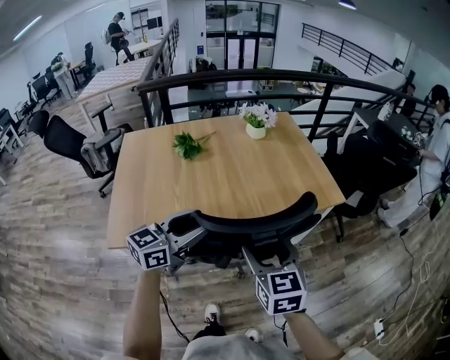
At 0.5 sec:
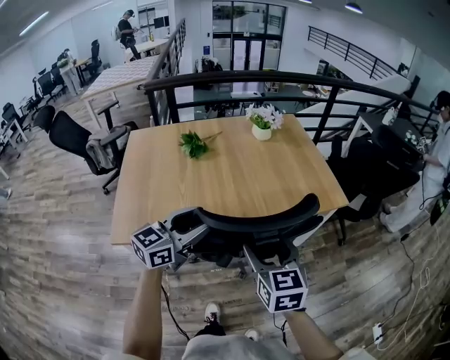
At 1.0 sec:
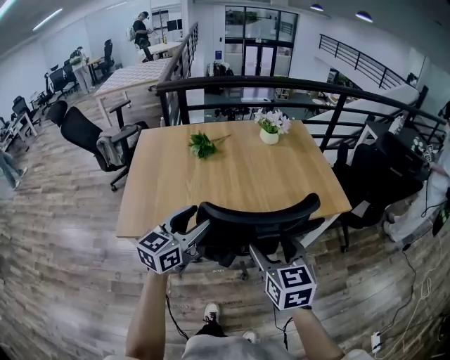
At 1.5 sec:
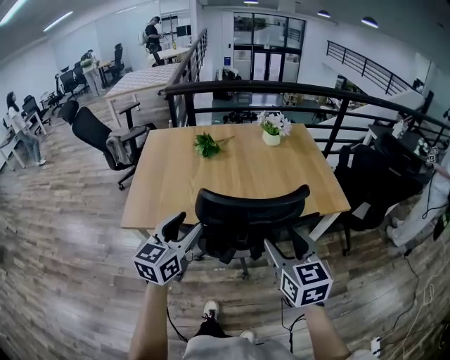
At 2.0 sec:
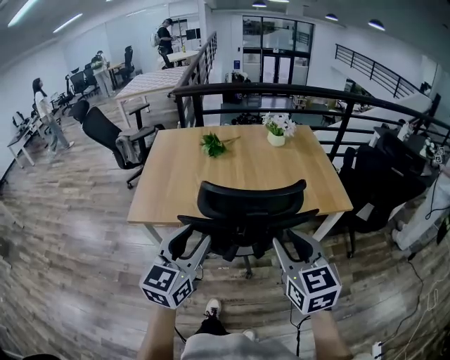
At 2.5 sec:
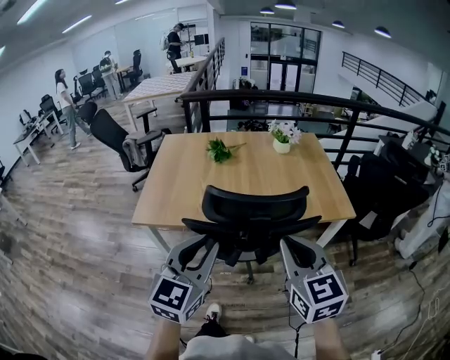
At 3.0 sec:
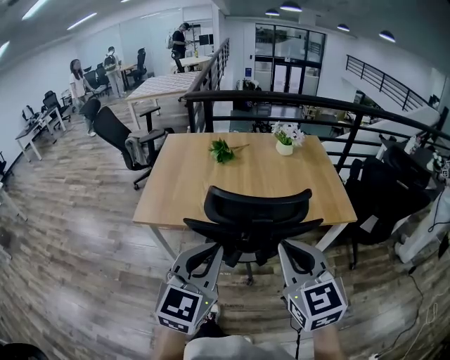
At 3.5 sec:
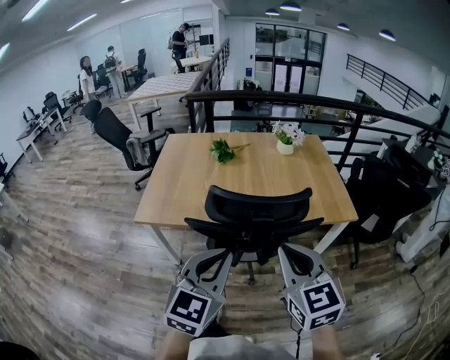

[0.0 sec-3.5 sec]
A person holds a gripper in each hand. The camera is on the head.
0.0 sec to 2.0 sec: The right gripper shifts approximately 15 cm backward, to the right and upward, and closes. Meanwhile the left gripper travels backward by about 15 cm, and turns by approximately 40 degrees.
2.0 sec to 3.5 sec: The right gripper closes its fingers; the left gripper is displaced to the right and backward by approximately 10 cm, and closes.

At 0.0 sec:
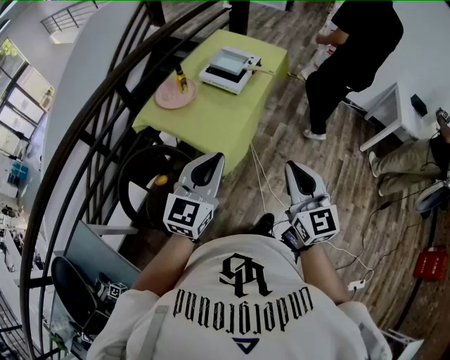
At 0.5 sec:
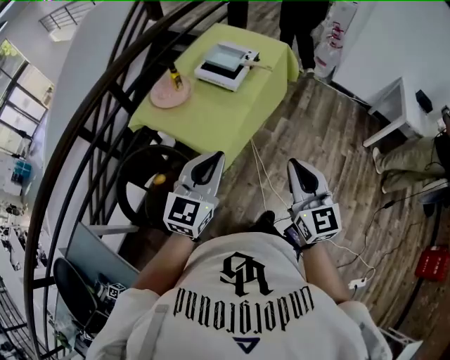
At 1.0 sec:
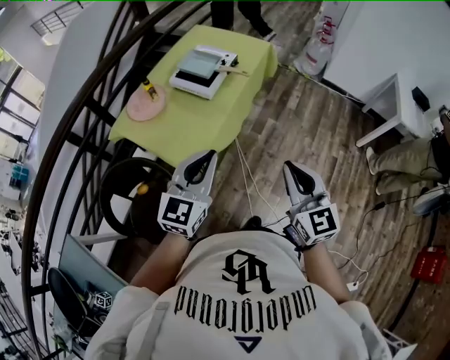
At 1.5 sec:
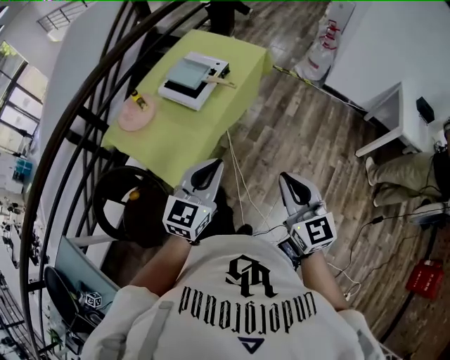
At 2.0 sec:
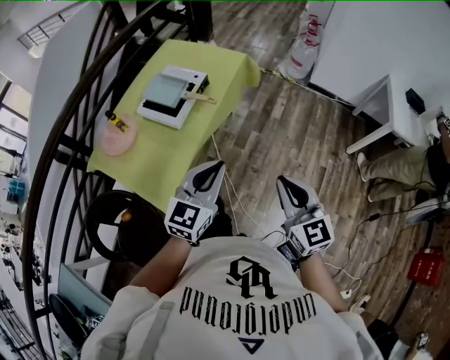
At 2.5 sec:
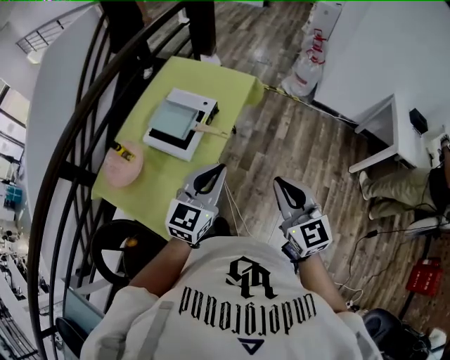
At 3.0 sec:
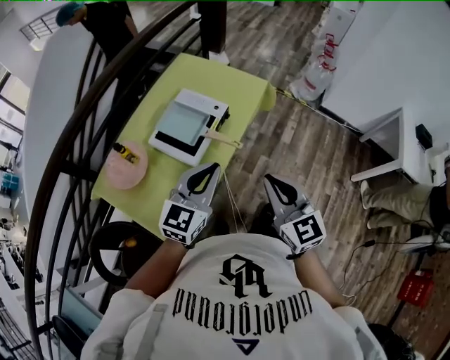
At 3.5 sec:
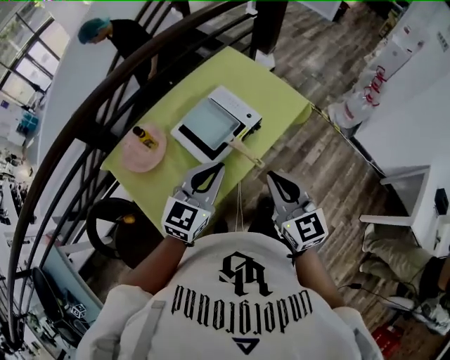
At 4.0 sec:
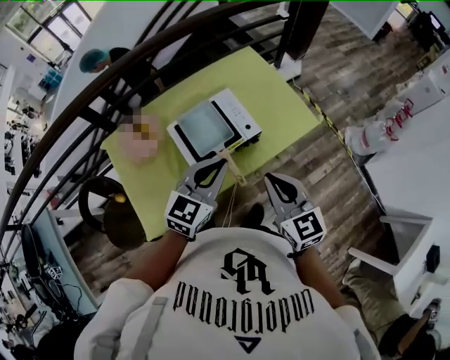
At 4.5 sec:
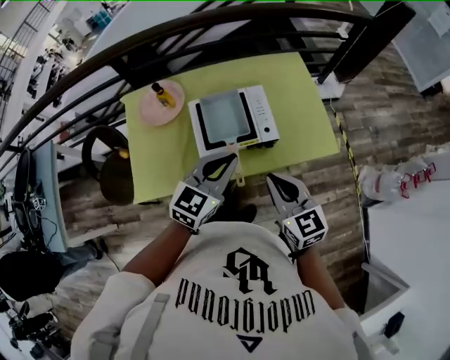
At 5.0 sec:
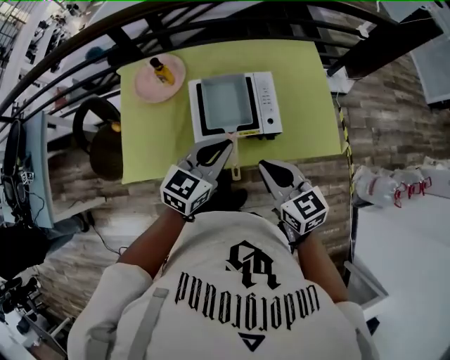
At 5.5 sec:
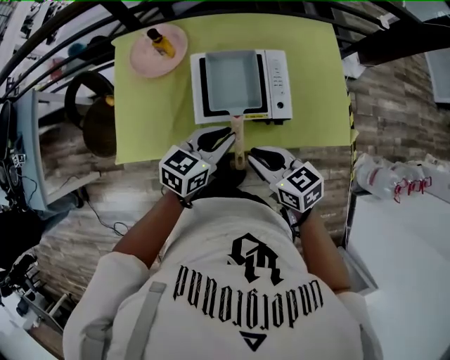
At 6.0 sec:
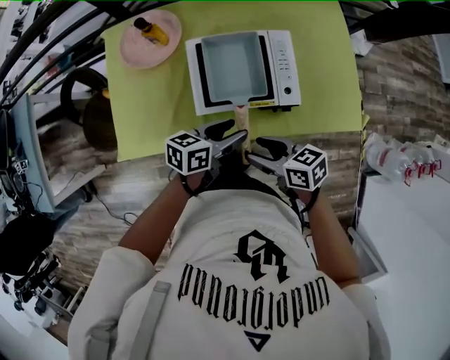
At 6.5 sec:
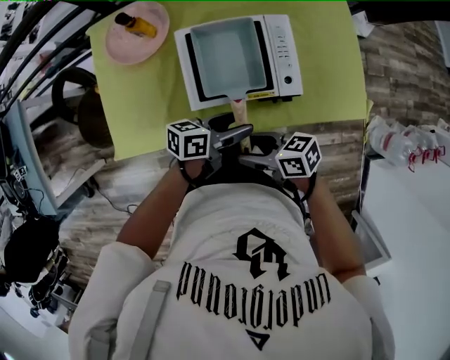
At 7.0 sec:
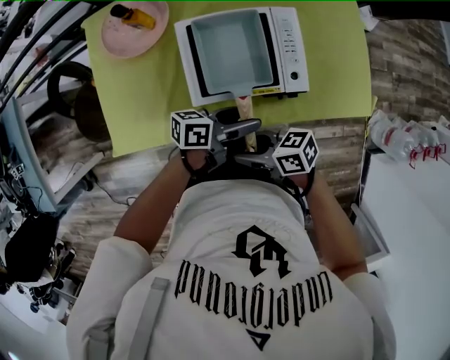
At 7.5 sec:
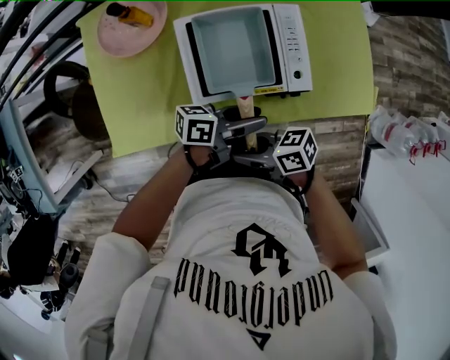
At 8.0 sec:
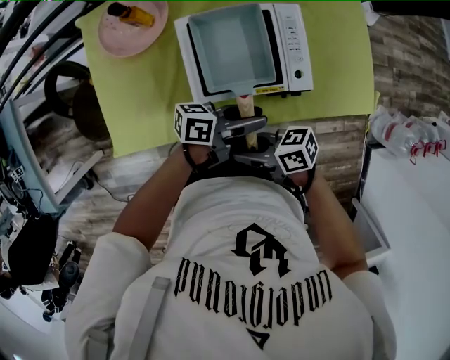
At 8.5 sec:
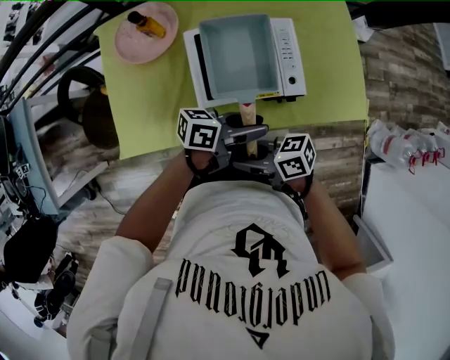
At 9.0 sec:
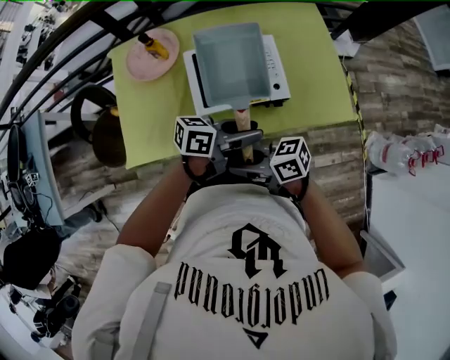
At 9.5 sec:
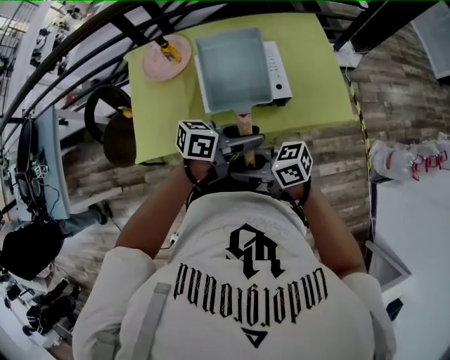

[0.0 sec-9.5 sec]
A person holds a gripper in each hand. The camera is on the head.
0.0 sec to 2.0 sec: The left gripper is displaced forward and to the right by some 40 cm. Meanwhile the right gripper shifts roughly 35 cm to the right and forward.
2.0 sec to 4.0 sec: The right gripper shifts by some 40 cm, and turns by some 40 degrees; the left gripper shifts by roughly 35 cm, and rotates about 30 degrees.
4.0 sec to 5.5 sec: Both grippers move downward, about 15 cm. The right gripper swivels about 50 degrees, while the left gripper rotates roughly 30 degrees.
5.5 sec to 7.5 sec: The grippers both shift downward by some 10 cm. The left gripper turns by about 50 degrees, and opens. The right gripper rotates roughly 40 degrees, and opens and closes again.
7.5 sec to 9.5 sec: Both grippers travel together upward, roughly 15 cm. The right gripper changes its angle by some 20 degrees; the left gripper turns by approximately 20 degrees.

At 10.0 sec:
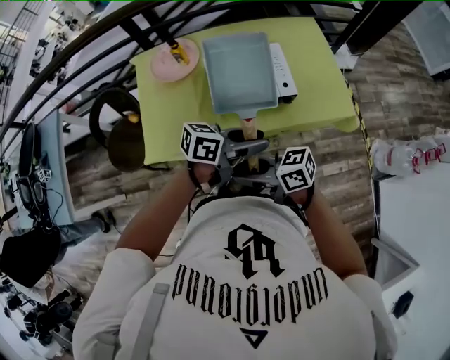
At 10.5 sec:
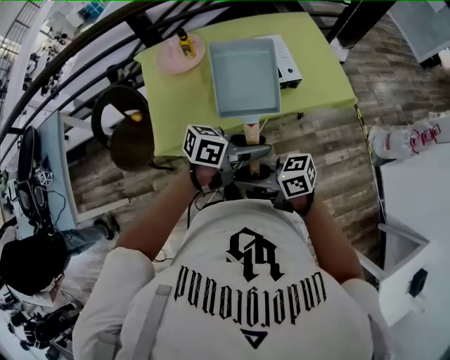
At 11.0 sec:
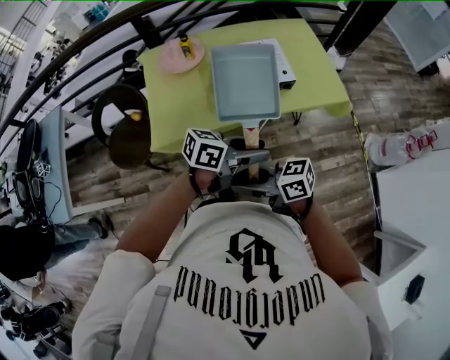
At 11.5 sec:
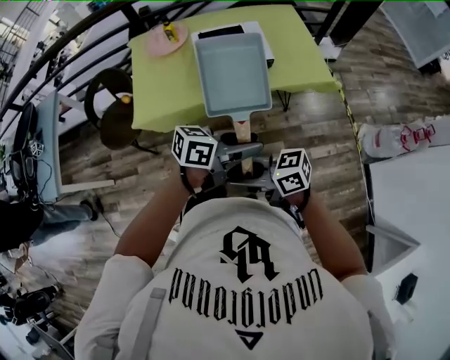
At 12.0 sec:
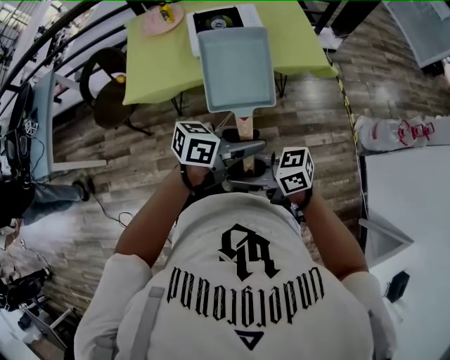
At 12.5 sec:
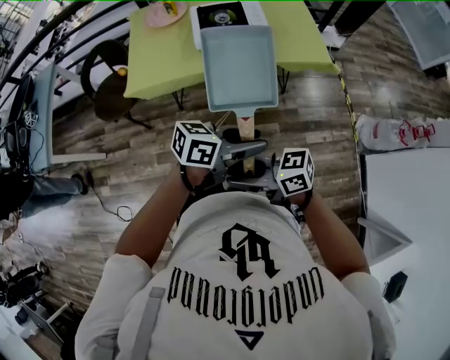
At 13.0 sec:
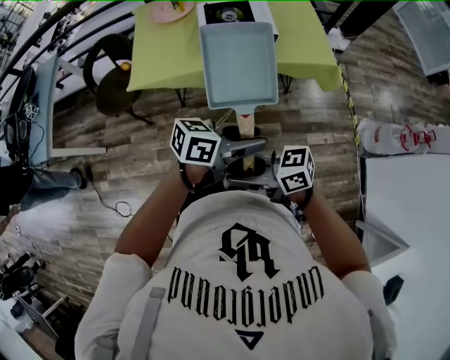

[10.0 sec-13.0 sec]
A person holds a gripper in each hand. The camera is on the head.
10.0 sec to 11.5 sec: The right gripper moves some 25 cm. The left gripper changes place by roughly 20 cm.
11.5 sec to 13.0 sec: The right gripper moves about 10 cm. The left gripper ends up about 10 cm from where it was.

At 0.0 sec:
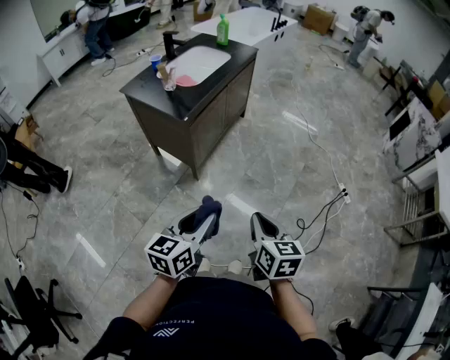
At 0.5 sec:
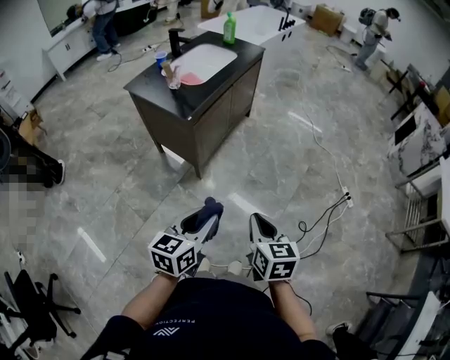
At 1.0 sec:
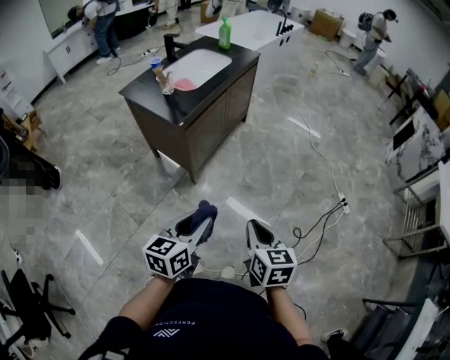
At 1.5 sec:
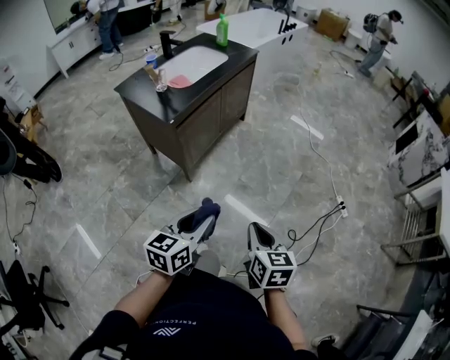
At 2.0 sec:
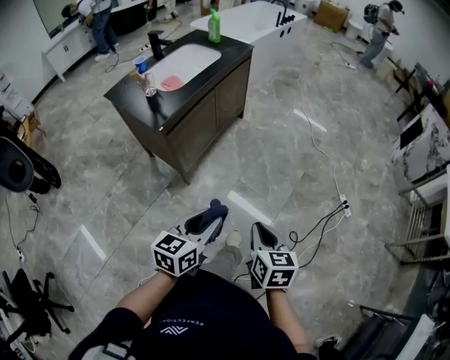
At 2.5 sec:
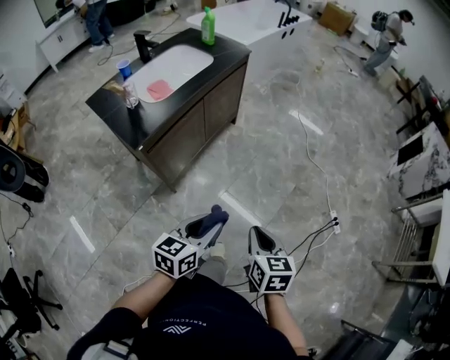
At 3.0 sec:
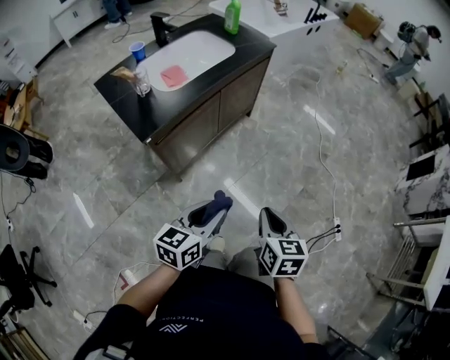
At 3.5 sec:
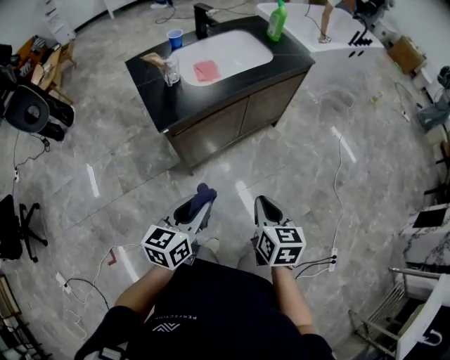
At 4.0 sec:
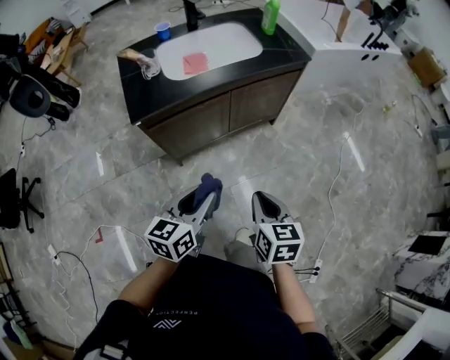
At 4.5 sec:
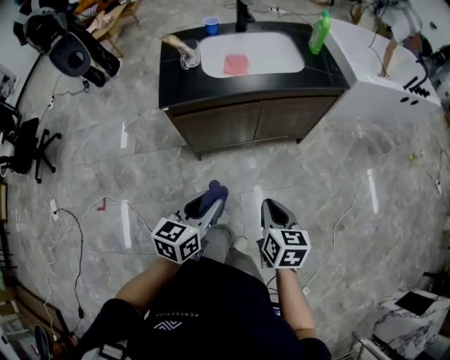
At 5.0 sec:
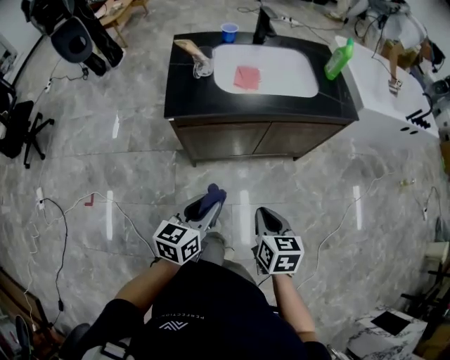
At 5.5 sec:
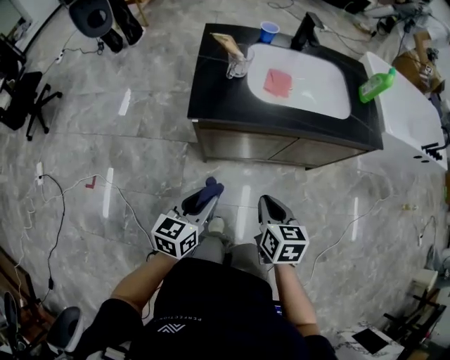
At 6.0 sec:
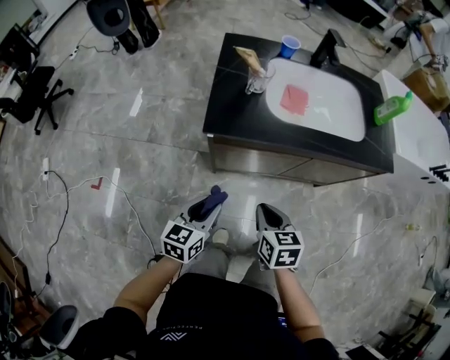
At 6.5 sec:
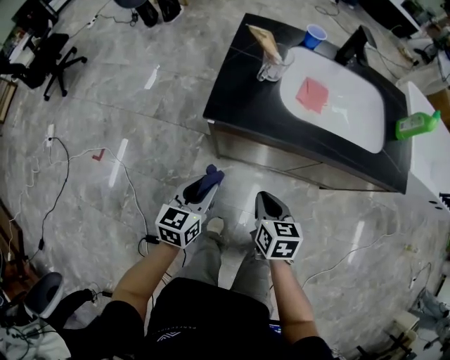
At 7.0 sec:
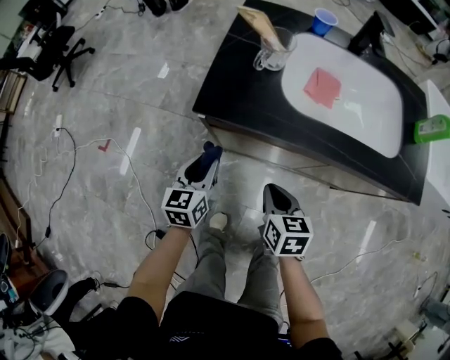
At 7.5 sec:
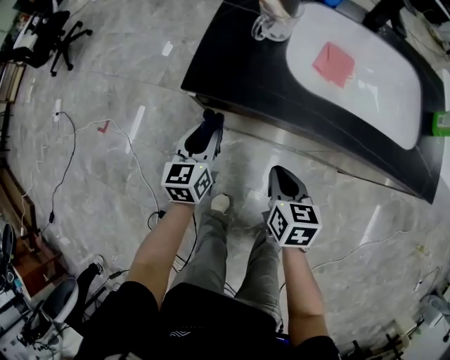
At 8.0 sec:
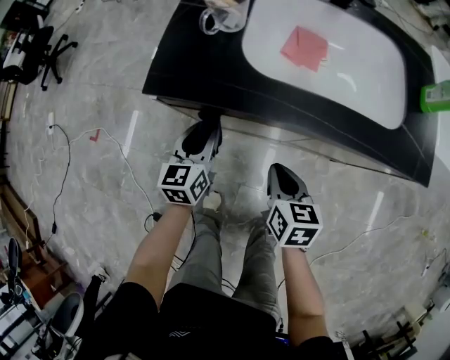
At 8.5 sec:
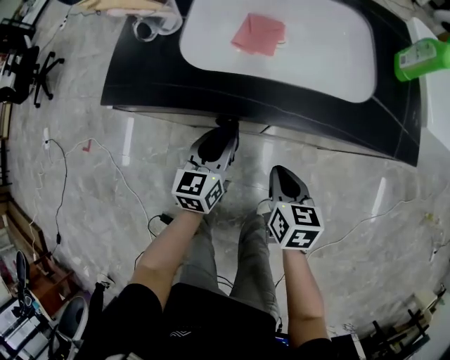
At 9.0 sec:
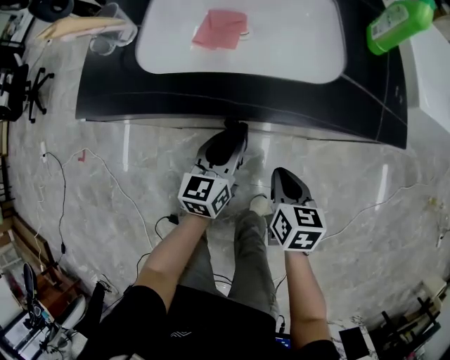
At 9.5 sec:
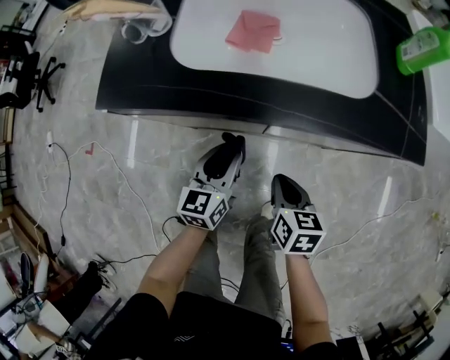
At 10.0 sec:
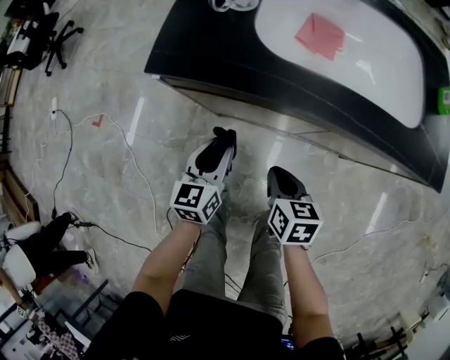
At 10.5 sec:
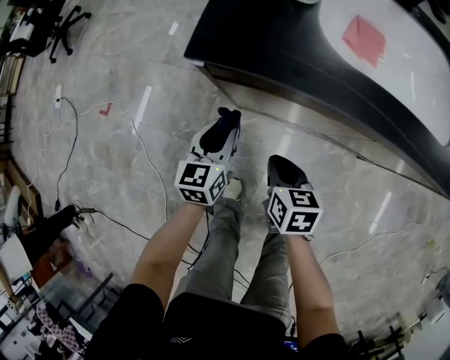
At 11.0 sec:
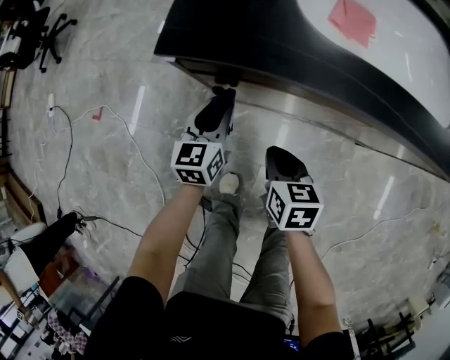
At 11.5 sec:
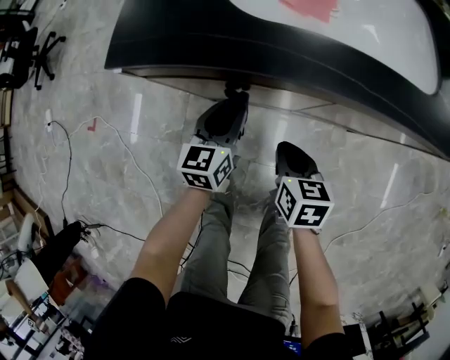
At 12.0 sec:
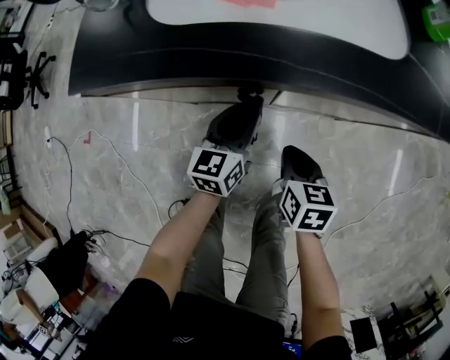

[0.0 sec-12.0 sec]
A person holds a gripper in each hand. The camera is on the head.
0.0 sec to 2.0 sec: The left gripper shifts some 15 cm to the right and forward; the right gripper goes approximately 15 cm to the right, forward and downward.
2.0 sec to 4.0 sec: The left gripper ends up about 30 cm from where it was, and rotates approximately 40 degrees, while the right gripper shifts by some 40 cm, and turns by roughly 40 degrees.
4.0 sec to 6.0 sec: The right gripper ends up some 25 cm from where it was, and turns by about 30 degrees, while the left gripper moves approximately 20 cm, and changes its angle by roughly 30 degrees.
6.0 sec to 8.0 sec: The right gripper moves to the right, downward and forward, roughly 20 cm; the left gripper is displaced forward, to the right and downward by about 20 cm, and turns by some 20 degrees.
8.0 sec to 10.0 sec: The left gripper moves backward, about 5 cm, and travels to the right and back again, approximately 25 cm each way. Meanwhile the right gripper travels downward by approximately 5 cm, and goes to the right and returns, some 20 cm each way.
10.0 sec to 12.0 sec: Both grippers travel together to the right, roughly 15 cm.
